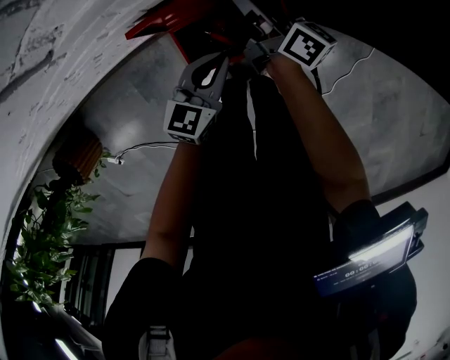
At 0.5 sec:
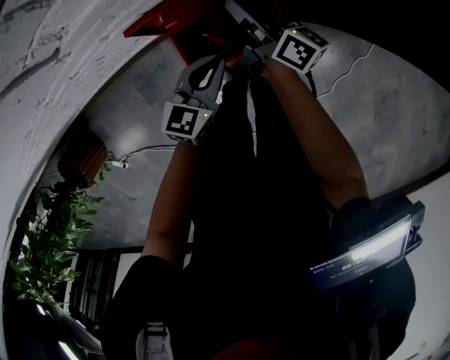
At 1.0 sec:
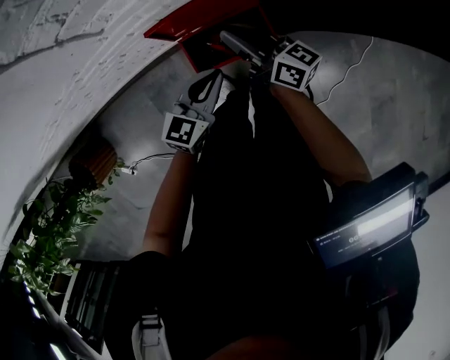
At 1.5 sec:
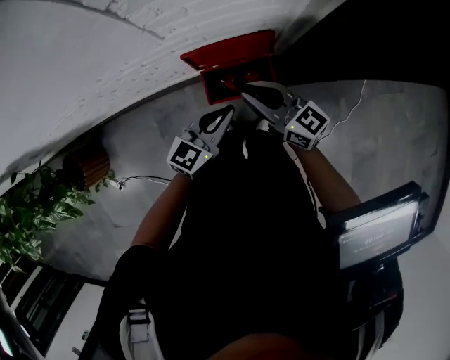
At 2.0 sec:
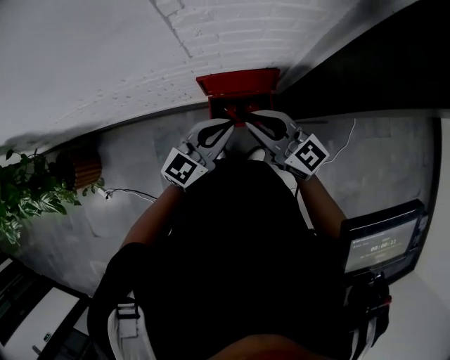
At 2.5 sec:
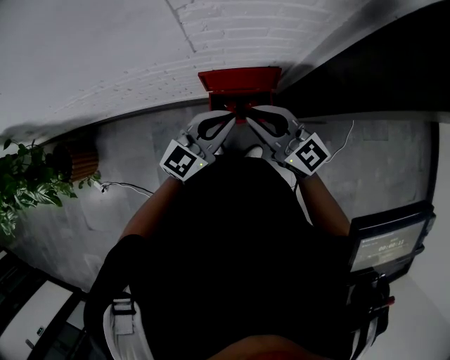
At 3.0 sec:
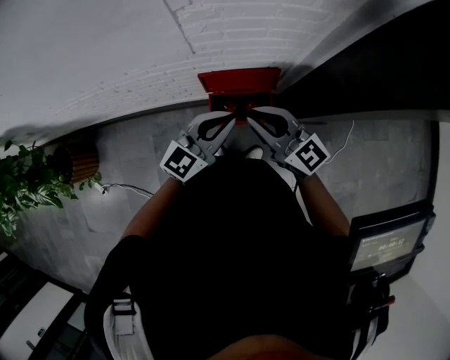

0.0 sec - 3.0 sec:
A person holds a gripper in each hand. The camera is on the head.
0.0 sec - 1.5 sec: The left gripper goes some 25 cm upward. Meanwhile the right gripper is displaced upward and backward by some 30 cm, and changes its angle by roughly 40 degrees.
1.5 sec - 3.0 sec: The two grippers go some 10 cm upward.

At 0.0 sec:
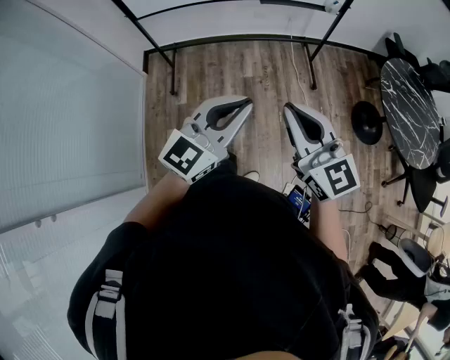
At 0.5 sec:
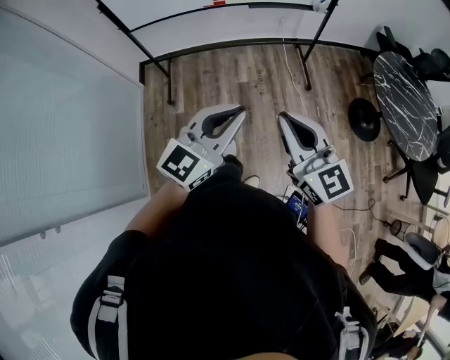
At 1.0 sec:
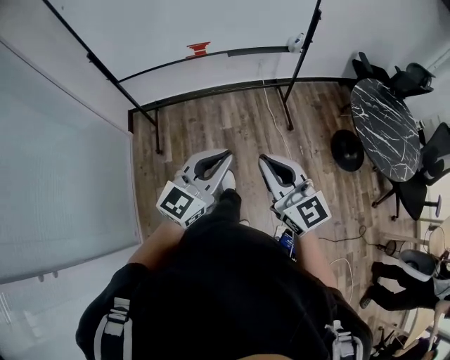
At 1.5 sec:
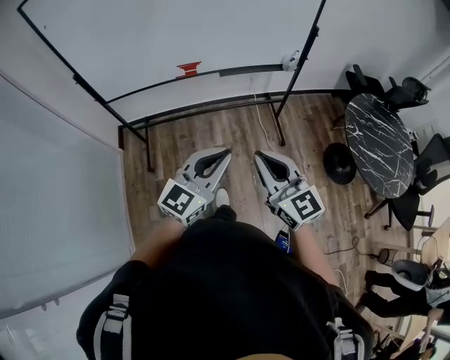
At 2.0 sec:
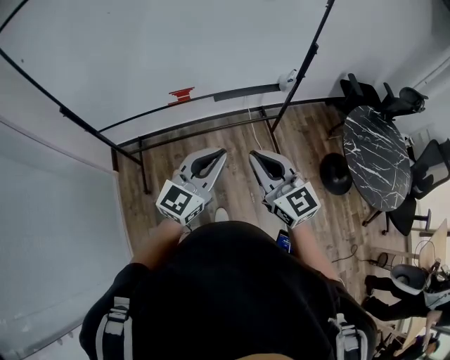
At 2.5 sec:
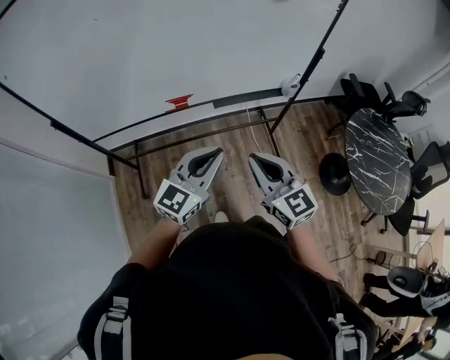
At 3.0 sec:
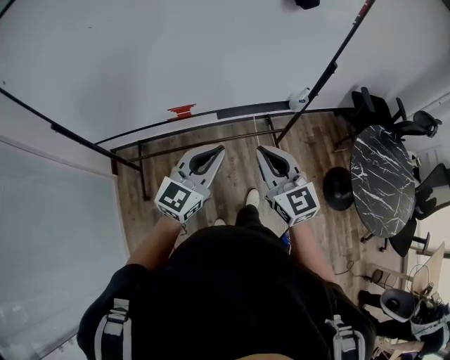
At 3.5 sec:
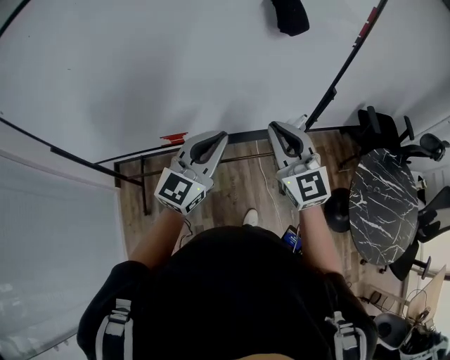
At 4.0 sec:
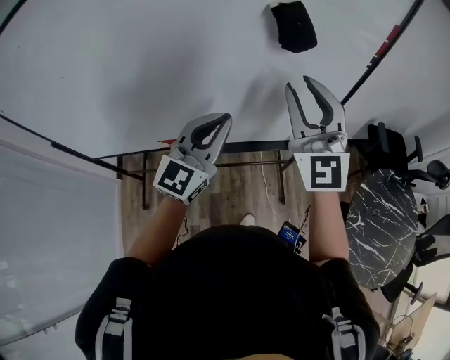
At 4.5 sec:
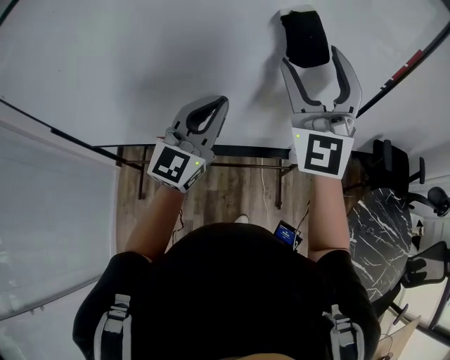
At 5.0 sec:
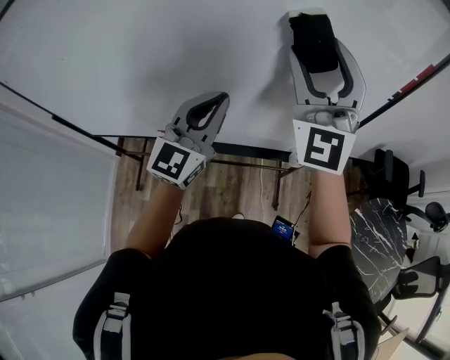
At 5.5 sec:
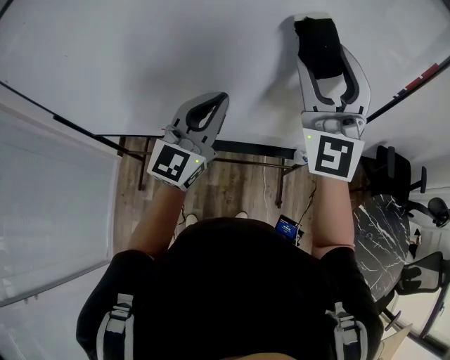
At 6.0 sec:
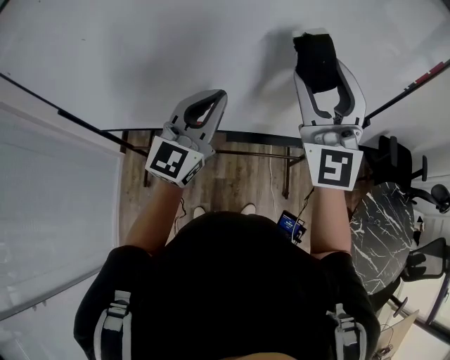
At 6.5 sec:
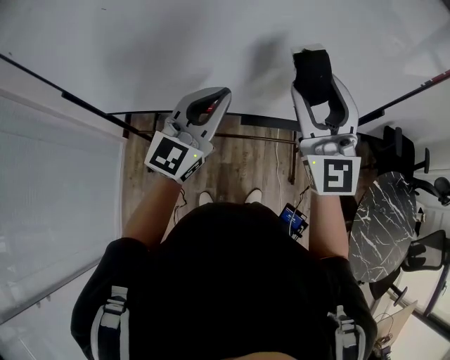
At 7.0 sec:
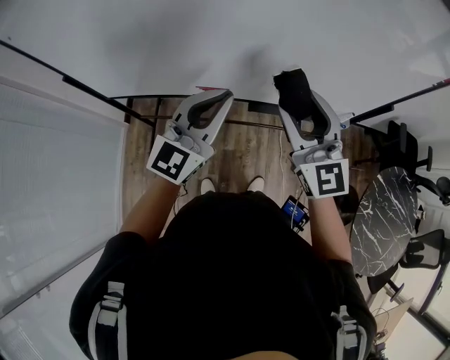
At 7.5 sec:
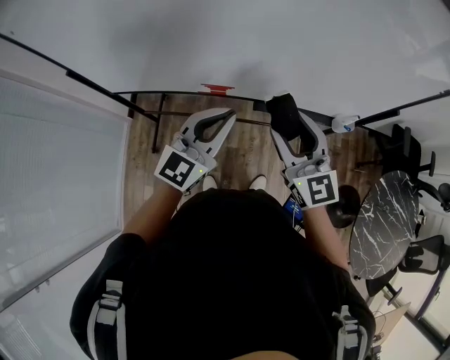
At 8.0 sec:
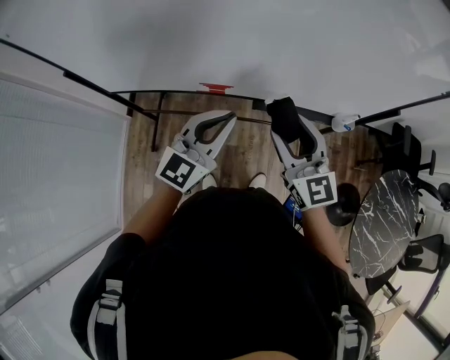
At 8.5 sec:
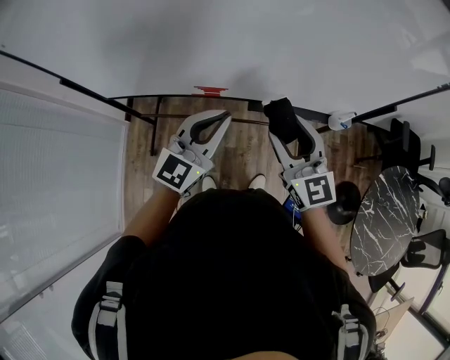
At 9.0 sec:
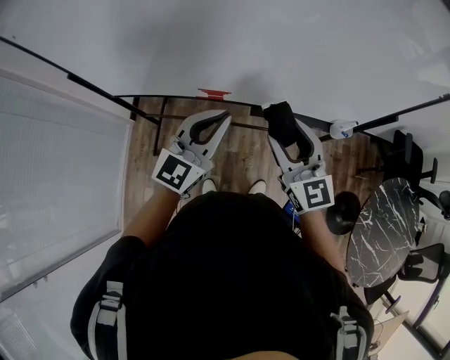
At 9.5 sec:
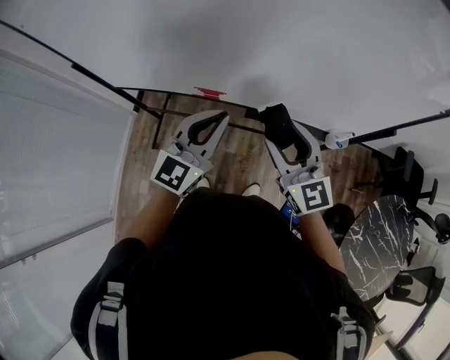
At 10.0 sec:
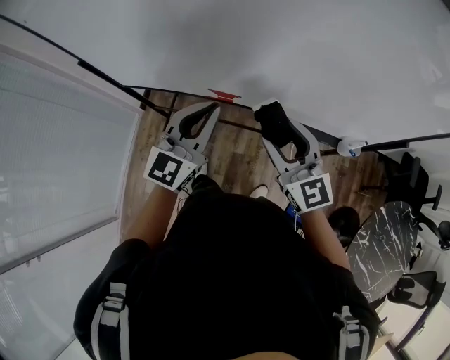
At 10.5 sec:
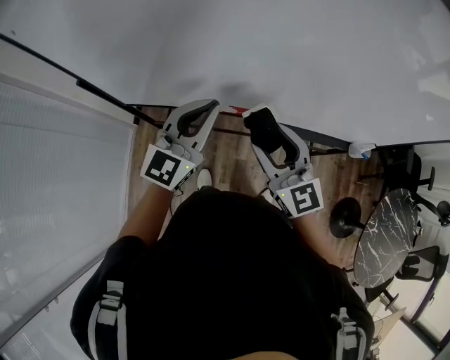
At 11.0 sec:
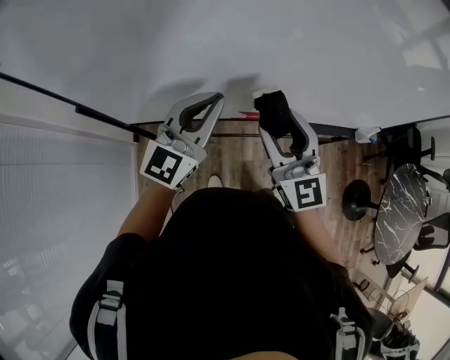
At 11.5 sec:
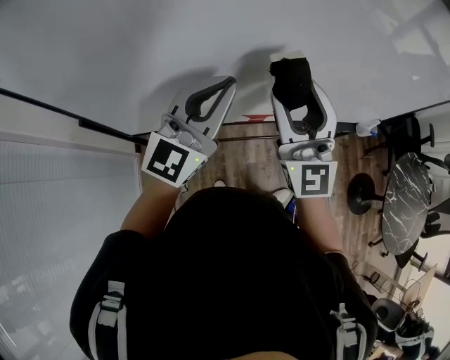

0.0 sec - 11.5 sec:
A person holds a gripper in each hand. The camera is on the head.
0.0 sec - 2.0 sec: Both grippers move forward, approximately 30 cm.
2.0 sec - 4.0 sec: Both grippers travel together forward, some 40 cm. The right gripper turns by roughly 40 degrees.
4.0 sec - 6.0 sec: The two grippers go about 10 cm to the left. The right gripper opens up.
6.0 sec - 7.5 sec: The right gripper is displaced downward, to the left and backward by approximately 25 cm, and turns by approximately 40 degrees. Meanwhile the left gripper heads downward, backward and to the left, covering about 15 cm.
7.5 sec - 9.5 sec: Both grippers move to the right, roughly 5 cm.
9.5 sec - 11.5 sec: The right gripper shifts by roughly 35 cm, and turns by roughly 40 degrees, while the left gripper changes place by roughly 30 cm, and rotates roughly 20 degrees.

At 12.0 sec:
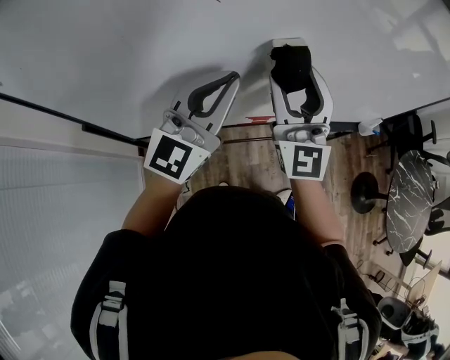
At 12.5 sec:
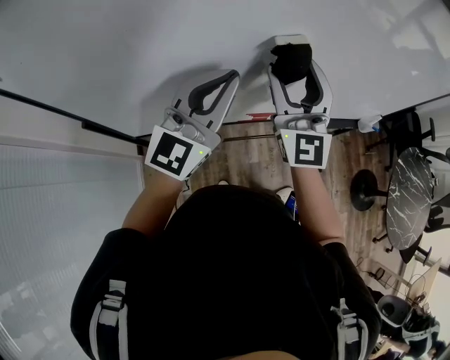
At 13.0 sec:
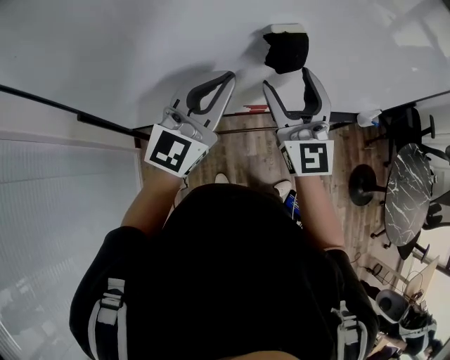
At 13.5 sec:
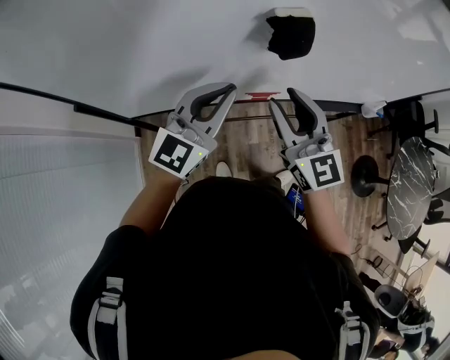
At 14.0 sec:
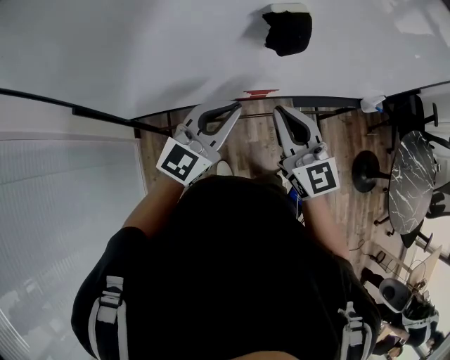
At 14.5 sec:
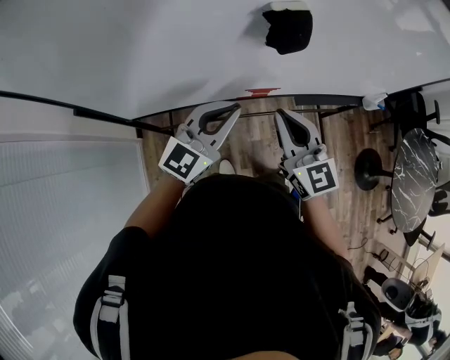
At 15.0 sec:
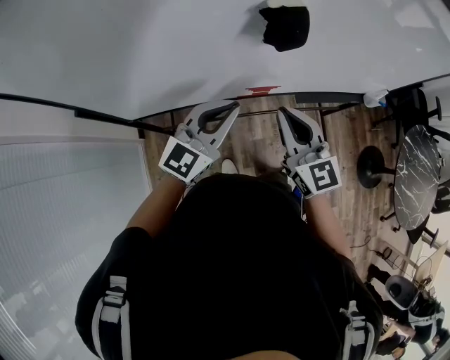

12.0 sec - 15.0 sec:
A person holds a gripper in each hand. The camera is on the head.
12.0 sec - 13.5 sec: The right gripper is displaced downward and backward by approximately 10 cm, and swivels roughly 30 degrees, while the left gripper shifts approximately 10 cm downward.
13.5 sec - 15.0 sec: The right gripper shifts by approximately 5 cm, and closes its fingers. The left gripper shifts some 5 cm downward.

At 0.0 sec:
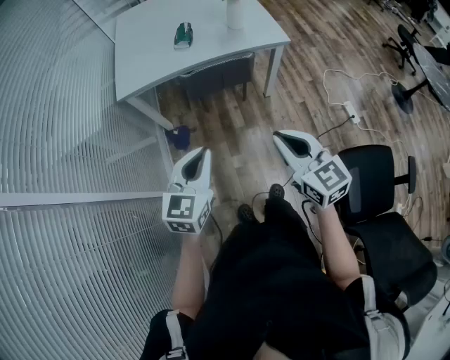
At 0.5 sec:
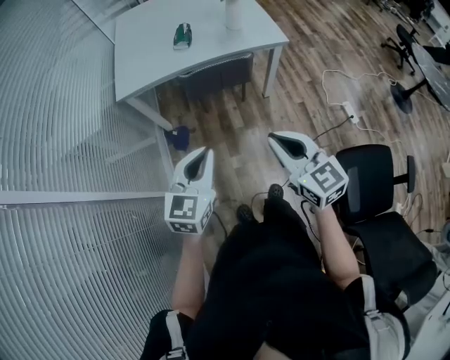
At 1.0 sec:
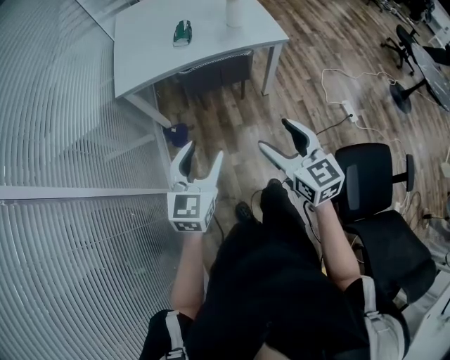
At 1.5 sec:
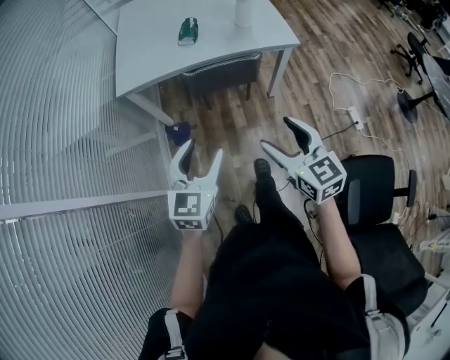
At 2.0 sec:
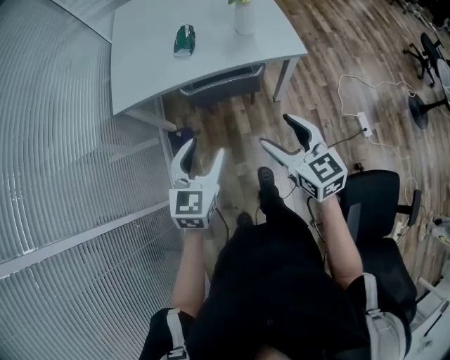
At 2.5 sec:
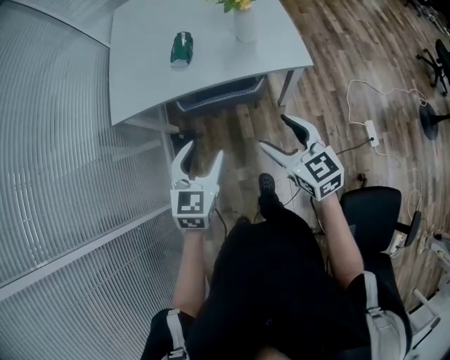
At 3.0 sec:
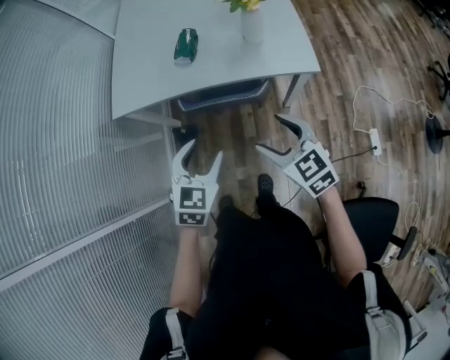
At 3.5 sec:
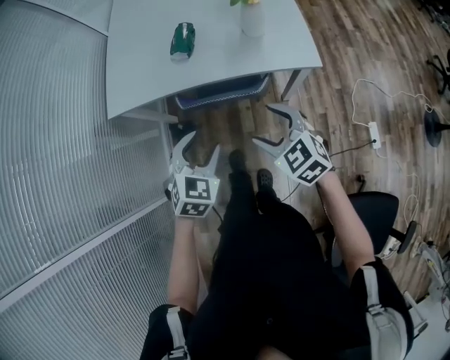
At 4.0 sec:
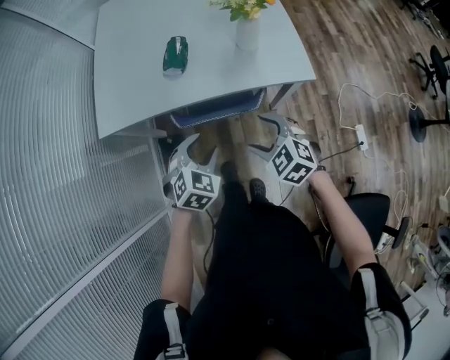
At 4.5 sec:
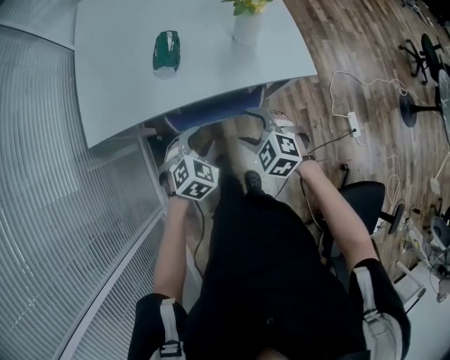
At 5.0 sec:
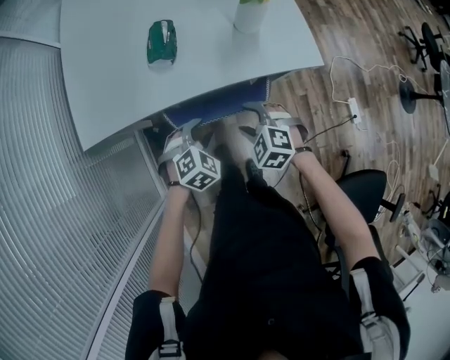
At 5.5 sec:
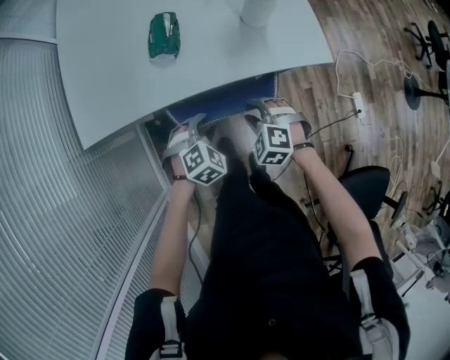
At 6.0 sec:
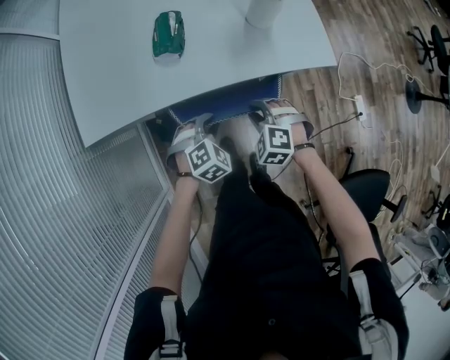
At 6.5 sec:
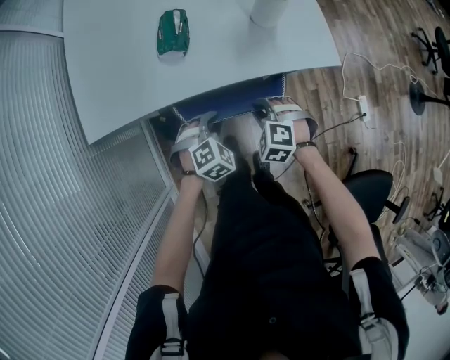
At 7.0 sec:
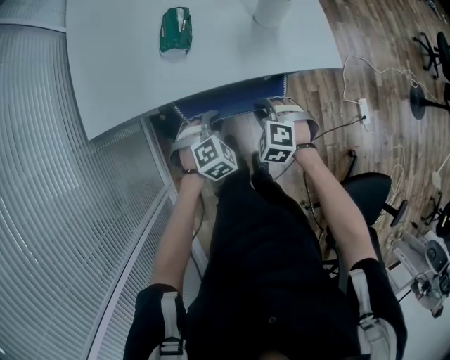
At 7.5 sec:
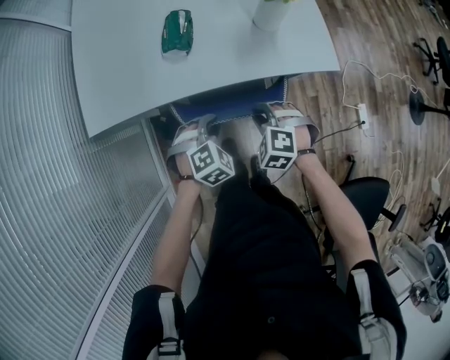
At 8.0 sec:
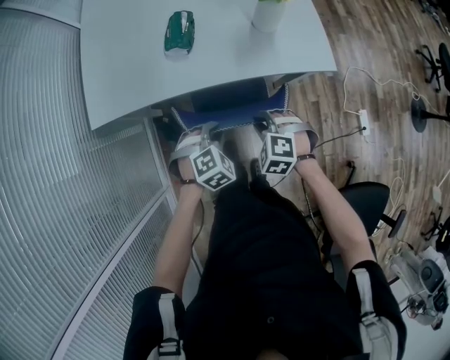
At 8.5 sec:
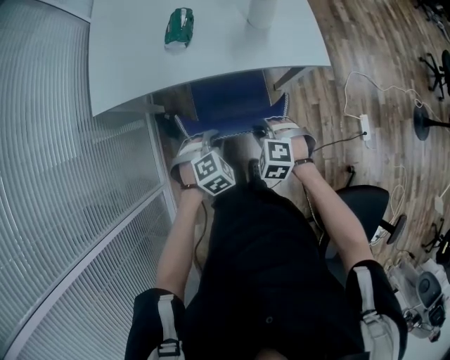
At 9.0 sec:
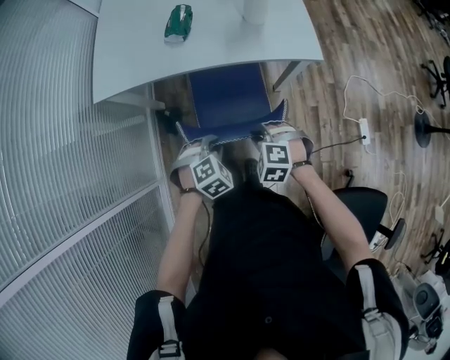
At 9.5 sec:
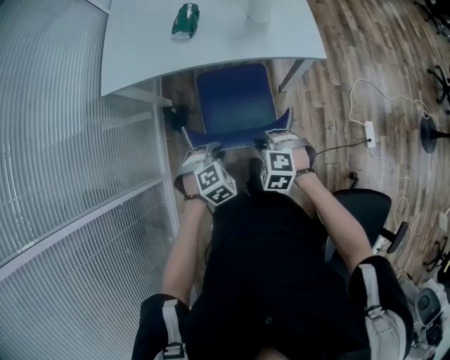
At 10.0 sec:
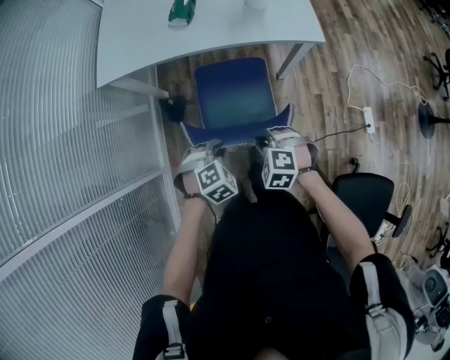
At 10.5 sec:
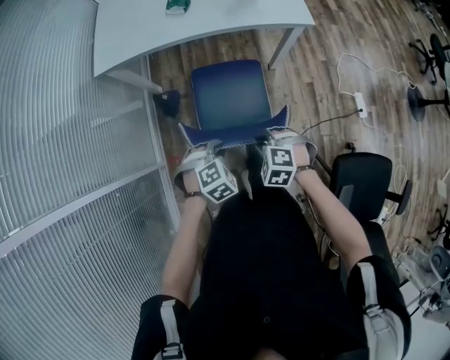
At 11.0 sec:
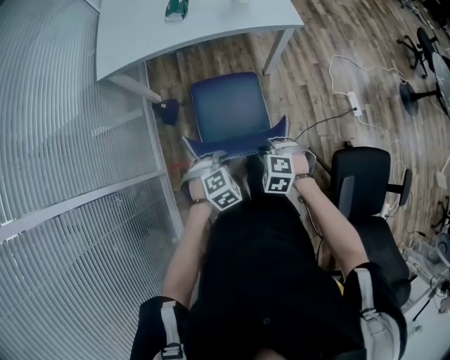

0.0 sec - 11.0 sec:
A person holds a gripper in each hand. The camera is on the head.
0.0 sec - 2.0 sec: Both grippers move forward, about 20 cm. The right gripper opens. Meanwhile the left gripper opens.
2.0 sec - 3.5 sec: The right gripper goes some 15 cm forward and downward, and swivels approximately 30 degrees, while the left gripper is displaced forward, to the right and downward by roughly 15 cm, and changes its angle by about 30 degrees.
3.5 sec - 5.5 sec: Both grippers move downward and forward, approximately 25 cm. The right gripper turns by roughly 30 degrees, and closes, while the left gripper changes its angle by about 30 degrees.
5.5 sec - 7.5 sec: The grippers make only small movements.
7.5 sec - 9.0 sec: The two grippers go about 20 cm backward.
9.0 sec - 11.0 sec: Both grippers travel together backward, some 25 cm.
